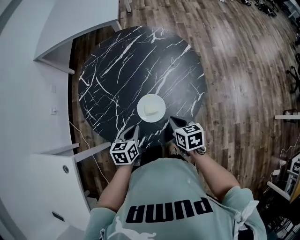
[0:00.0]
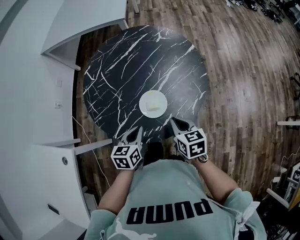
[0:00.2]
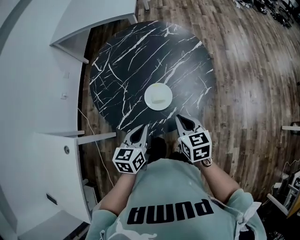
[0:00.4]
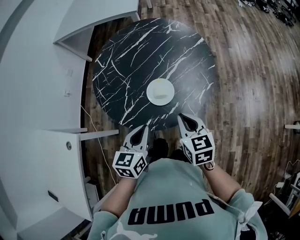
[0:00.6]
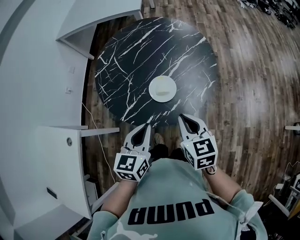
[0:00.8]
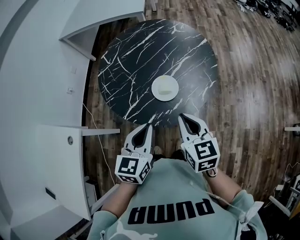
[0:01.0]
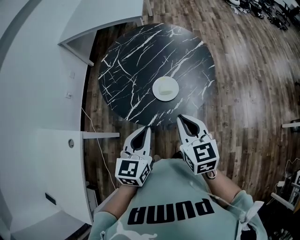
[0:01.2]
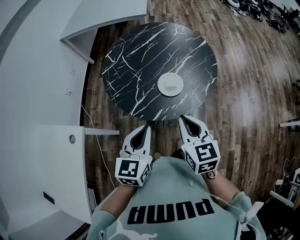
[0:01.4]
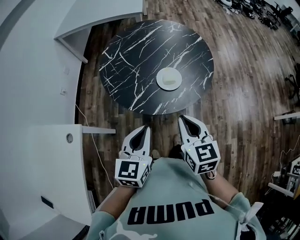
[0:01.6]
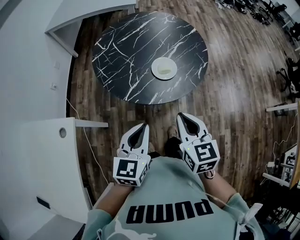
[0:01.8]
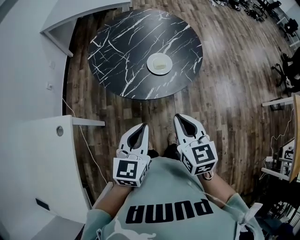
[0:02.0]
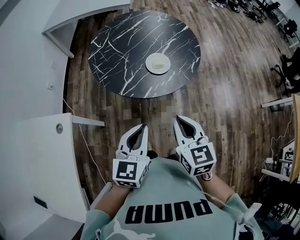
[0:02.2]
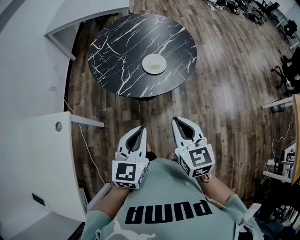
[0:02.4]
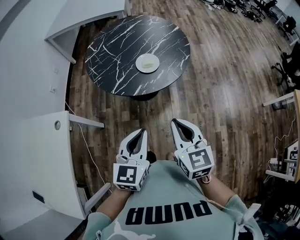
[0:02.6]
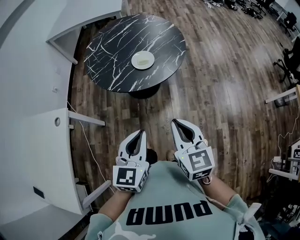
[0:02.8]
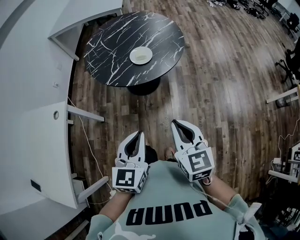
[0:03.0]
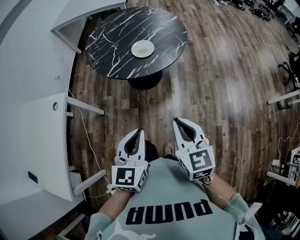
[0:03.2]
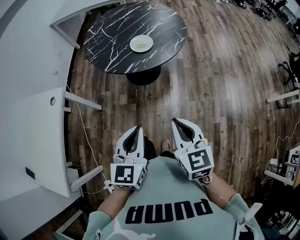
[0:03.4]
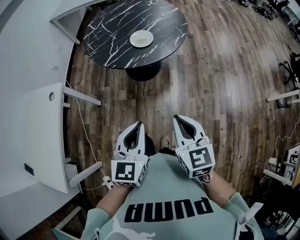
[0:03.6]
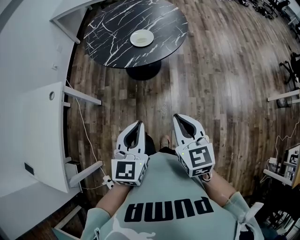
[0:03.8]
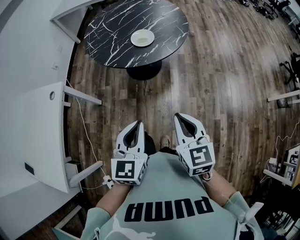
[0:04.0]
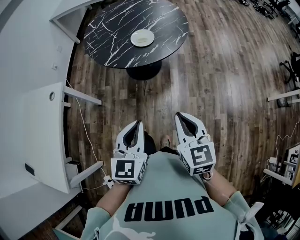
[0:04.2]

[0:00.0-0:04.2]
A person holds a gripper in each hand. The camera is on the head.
0:00.0 to 0:01.4: The left gripper is displaced upward and backward by approximately 25 cm, and rotates some 30 degrees, while the right gripper is displaced upward, backward and to the left by some 25 cm, and rotates about 30 degrees.
0:01.4 to 0:02.8: The grippers both shift backward by about 20 cm.
0:02.8 to 0:04.2: The grippers both shift backward by about 5 cm.

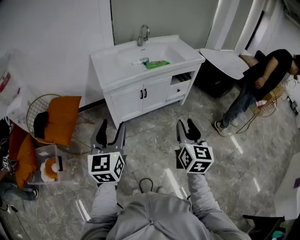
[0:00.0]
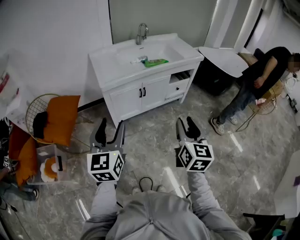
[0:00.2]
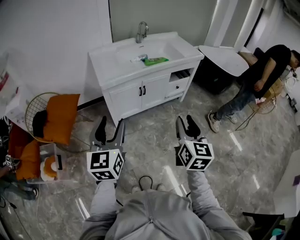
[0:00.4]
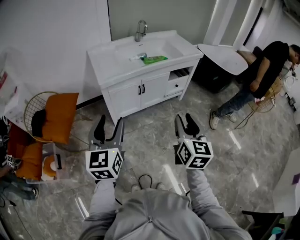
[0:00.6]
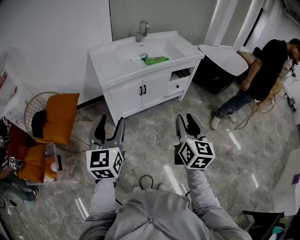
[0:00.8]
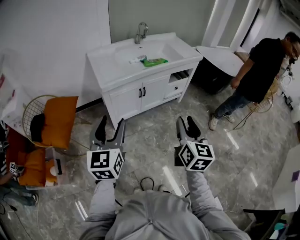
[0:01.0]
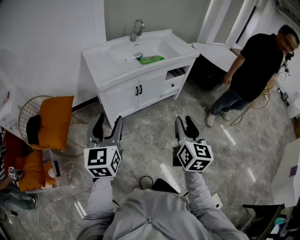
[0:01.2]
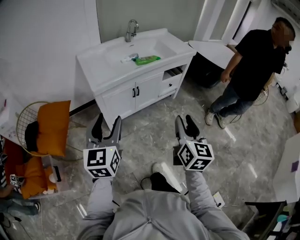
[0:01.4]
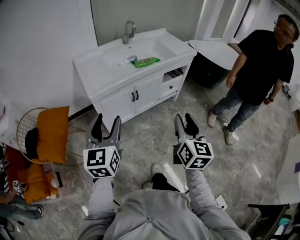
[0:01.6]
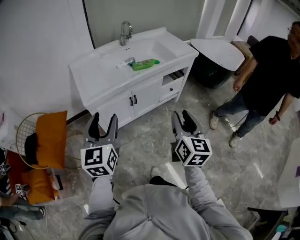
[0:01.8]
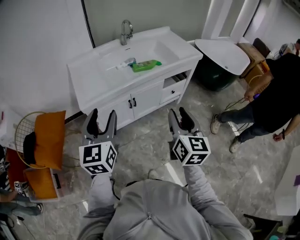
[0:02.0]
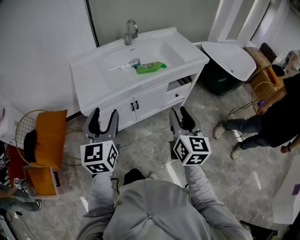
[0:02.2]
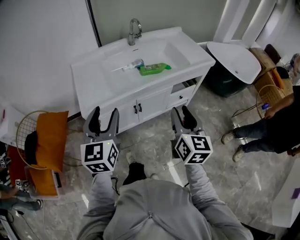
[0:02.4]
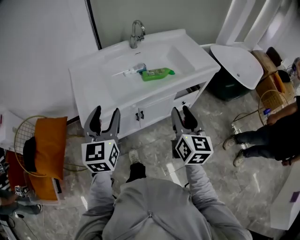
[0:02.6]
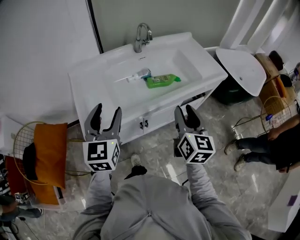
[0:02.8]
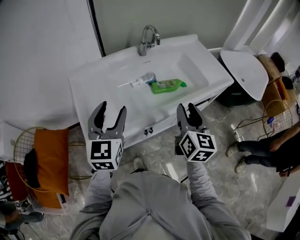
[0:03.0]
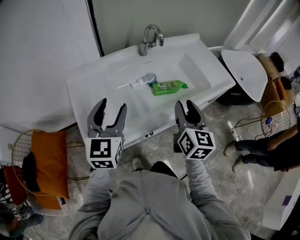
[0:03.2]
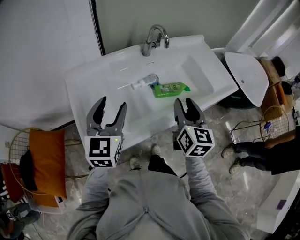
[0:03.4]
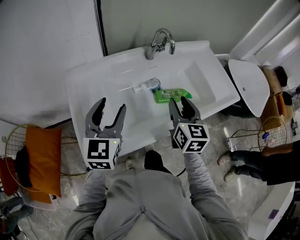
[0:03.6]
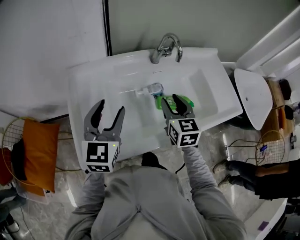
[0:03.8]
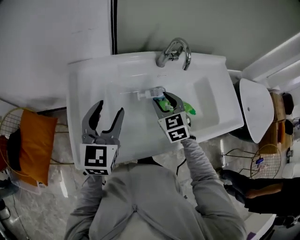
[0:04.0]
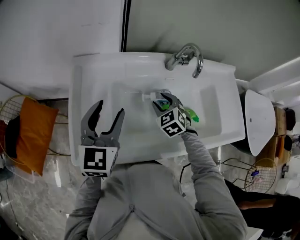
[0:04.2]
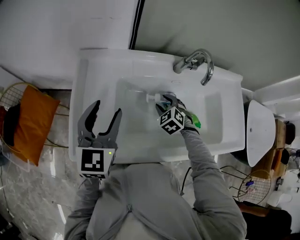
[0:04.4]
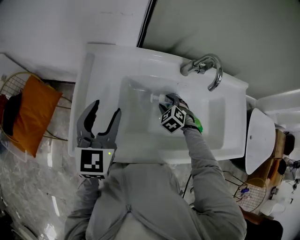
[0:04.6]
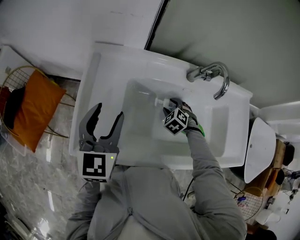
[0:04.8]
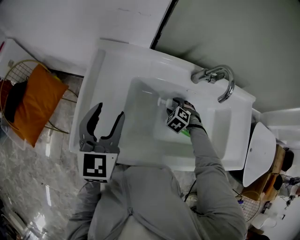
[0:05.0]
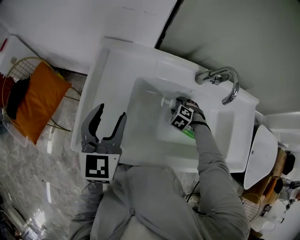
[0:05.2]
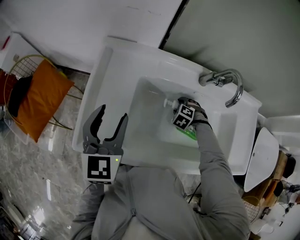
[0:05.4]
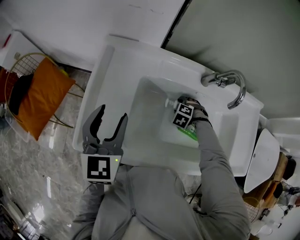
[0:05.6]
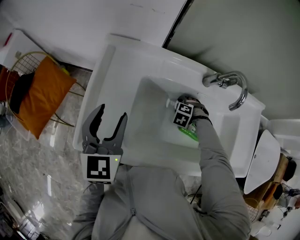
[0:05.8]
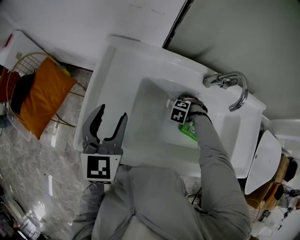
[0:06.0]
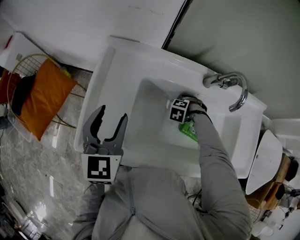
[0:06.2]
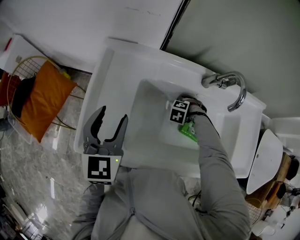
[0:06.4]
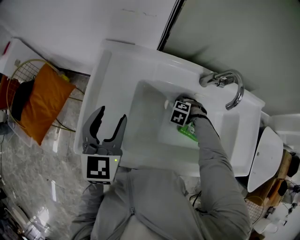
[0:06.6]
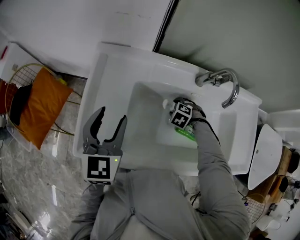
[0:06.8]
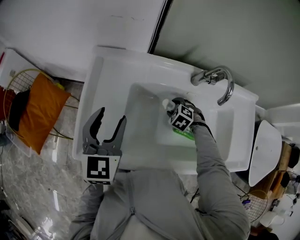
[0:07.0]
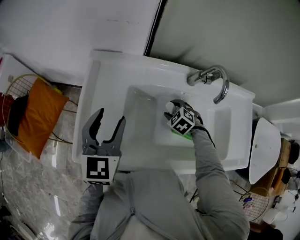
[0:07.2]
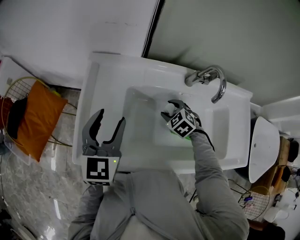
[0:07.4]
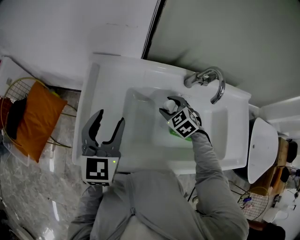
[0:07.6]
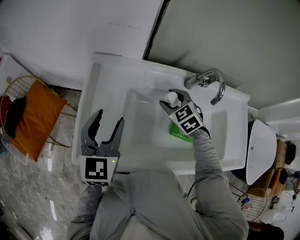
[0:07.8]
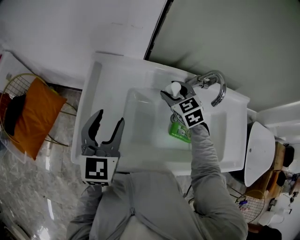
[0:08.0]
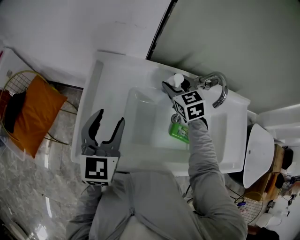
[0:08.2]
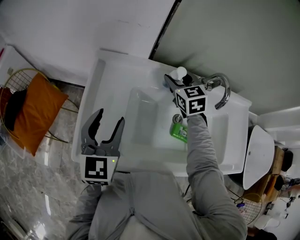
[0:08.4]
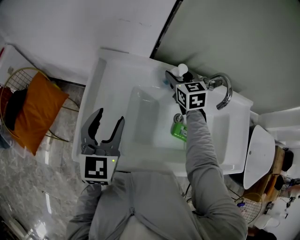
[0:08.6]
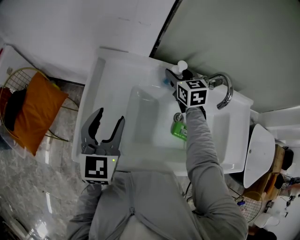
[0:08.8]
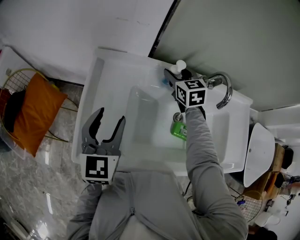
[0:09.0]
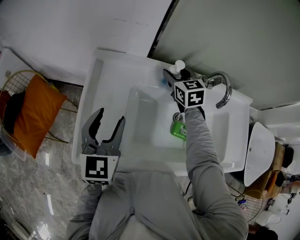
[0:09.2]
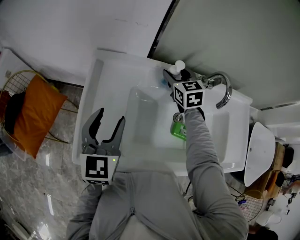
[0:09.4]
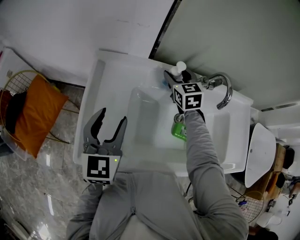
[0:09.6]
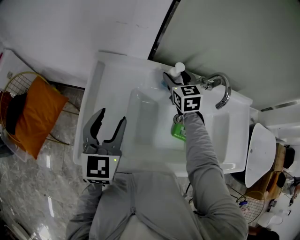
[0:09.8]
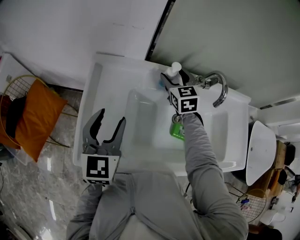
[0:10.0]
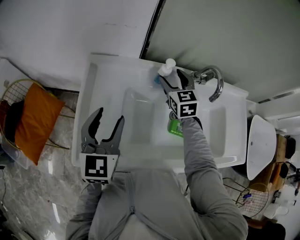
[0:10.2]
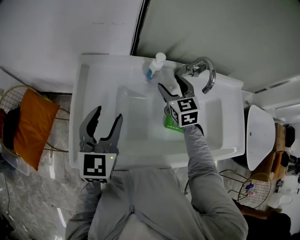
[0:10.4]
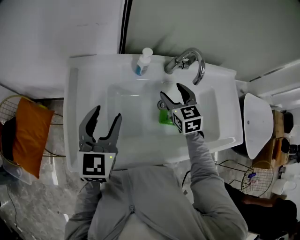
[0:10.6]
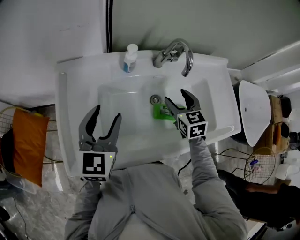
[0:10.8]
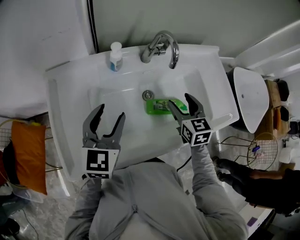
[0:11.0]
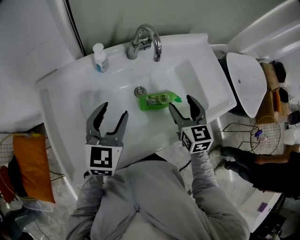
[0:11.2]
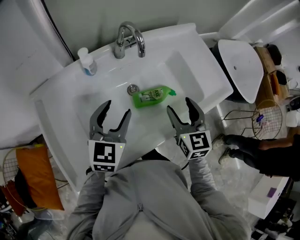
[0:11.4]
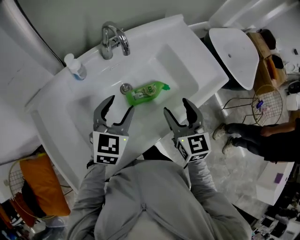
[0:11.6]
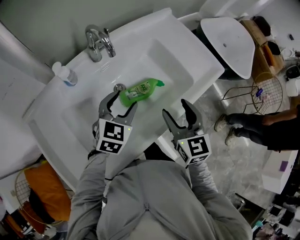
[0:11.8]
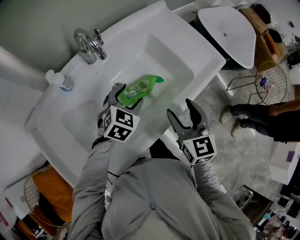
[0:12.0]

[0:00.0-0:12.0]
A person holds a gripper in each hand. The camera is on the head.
0:00.0 to 0:01.6: Both grippers move forward, approximately 10 cm.
0:01.6 to 0:03.0: The two grippers travel together, forward, some 40 cm.
0:03.0 to 0:04.4: The left gripper ends up approximately 15 cm from where it was, and swivels roughly 20 degrees. The right gripper shifts by about 40 cm, and points its fingers approximately 40 degrees further downward.
0:04.4 to 0:06.0: The left gripper ends up about 5 cm from where it was. Meanwhile the right gripper is displaced downward by roughly 10 cm, and angles its fingers downward, by roughly 30 degrees.
0:06.0 to 0:07.6: The right gripper travels upward by roughly 15 cm, and tilts its fingers about 30 degrees upward.
0:07.6 to 0:09.0: The right gripper travels forward and upward by approximately 15 cm, and changes its angle by roughly 30 degrees.
0:09.0 to 0:10.4: The right gripper is displaced backward by roughly 10 cm.
0:10.4 to 0:12.0: The left gripper moves roughly 35 cm, and turns by about 70 degrees. The right gripper changes place by approximately 35 cm, and rotates about 50 degrees.

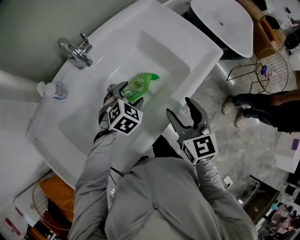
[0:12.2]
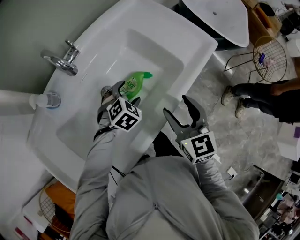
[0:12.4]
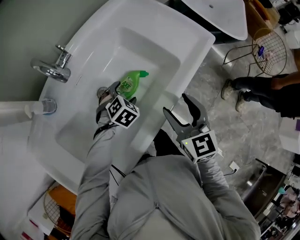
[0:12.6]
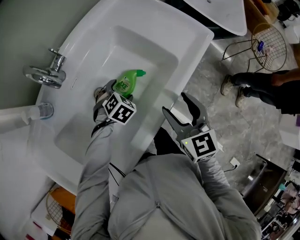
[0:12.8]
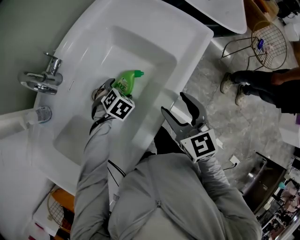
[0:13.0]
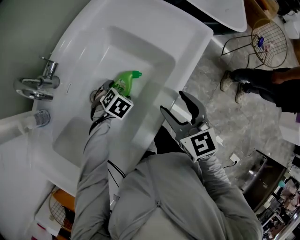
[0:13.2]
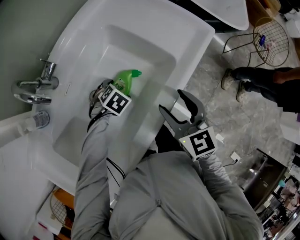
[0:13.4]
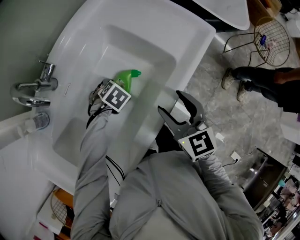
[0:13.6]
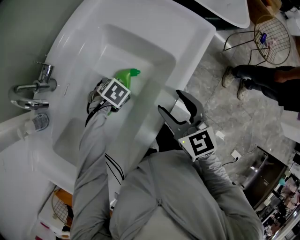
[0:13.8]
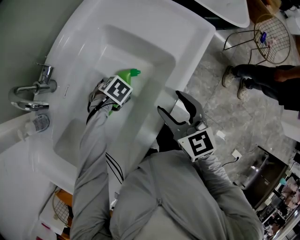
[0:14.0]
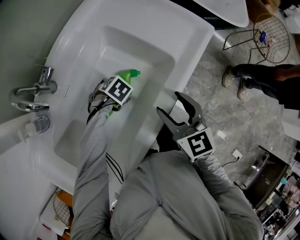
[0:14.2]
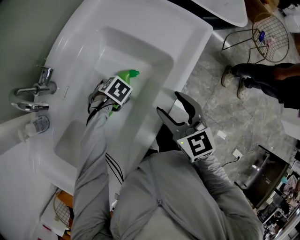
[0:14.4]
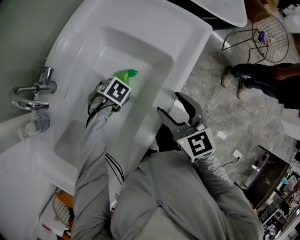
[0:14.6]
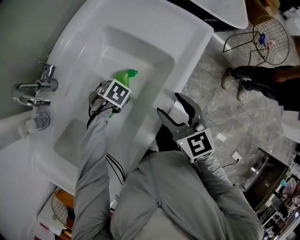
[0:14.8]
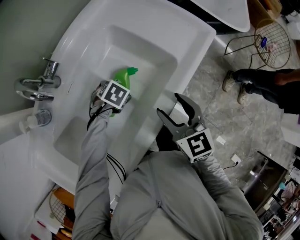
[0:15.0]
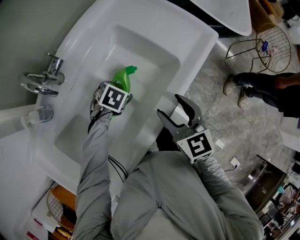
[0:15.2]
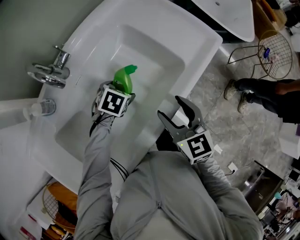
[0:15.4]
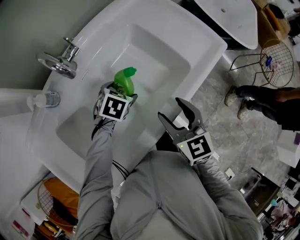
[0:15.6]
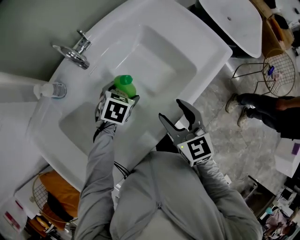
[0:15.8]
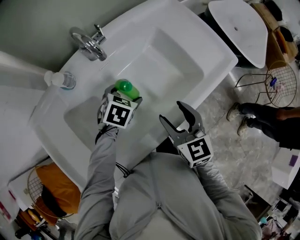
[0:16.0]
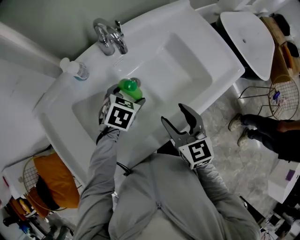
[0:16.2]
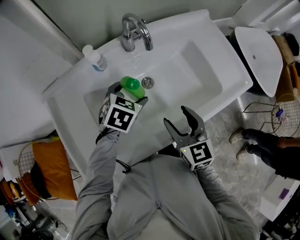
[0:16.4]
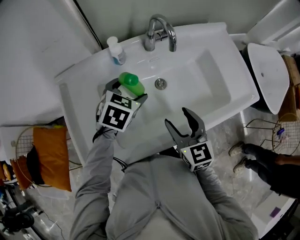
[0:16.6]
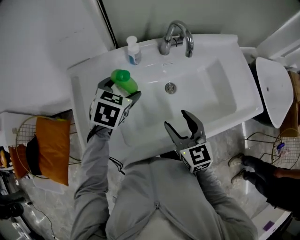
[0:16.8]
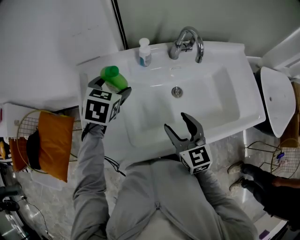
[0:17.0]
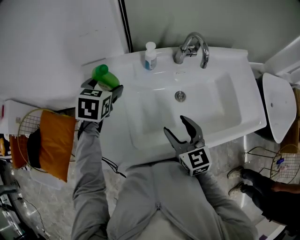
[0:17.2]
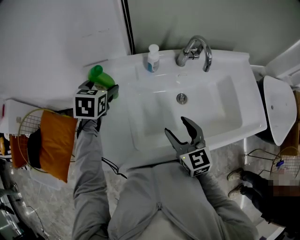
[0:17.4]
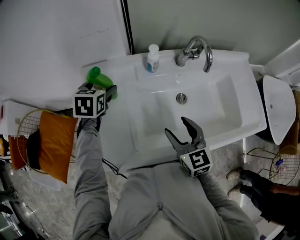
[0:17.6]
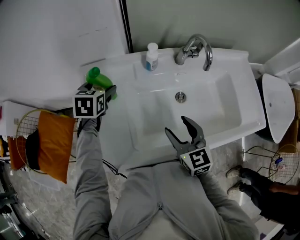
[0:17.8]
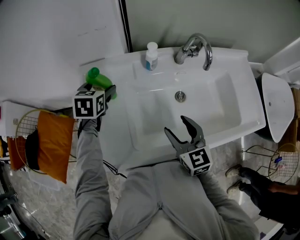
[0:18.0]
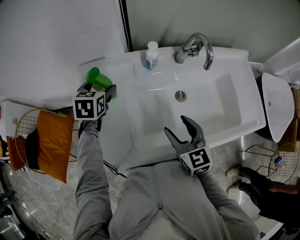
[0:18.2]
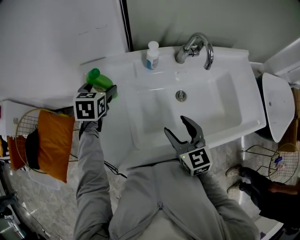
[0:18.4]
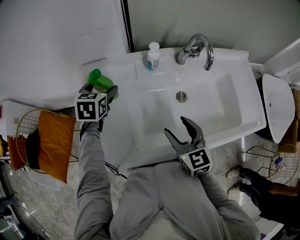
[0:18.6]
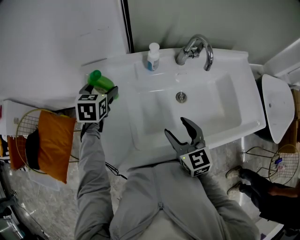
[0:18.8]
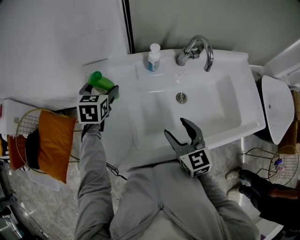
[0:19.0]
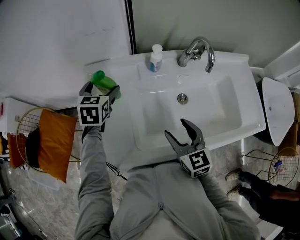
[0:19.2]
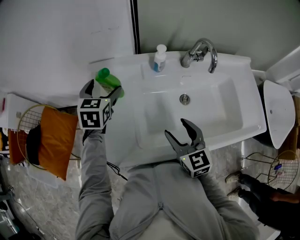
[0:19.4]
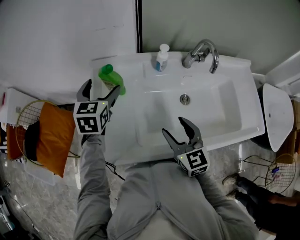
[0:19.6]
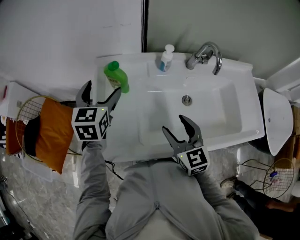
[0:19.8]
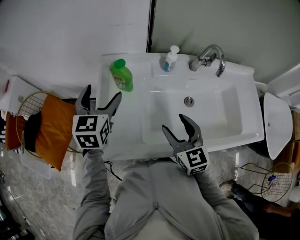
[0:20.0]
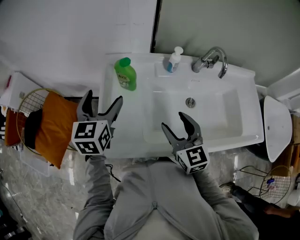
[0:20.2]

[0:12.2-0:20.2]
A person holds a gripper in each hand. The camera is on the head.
0:12.2 to 0:13.8: The left gripper goes some 15 cm downward, and changes its angle by approximately 40 degrees; the right gripper changes place by approximately 10 cm.
0:13.8 to 0:15.4: The left gripper travels upward by roughly 5 cm, and changes its angle by some 20 degrees.
0:15.4 to 0:17.0: The left gripper changes place by some 40 cm, and rotates some 50 degrees. Meanwhile the right gripper moves about 25 cm, and rotates about 40 degrees.
0:17.0 to 0:18.6: The left gripper moves to the left, approximately 10 cm.
0:18.6 to 0:20.2: The right gripper shifts roughly 5 cm to the left. The left gripper moves backward, upward and to the left, some 15 cm, and rotates about 30 degrees.
